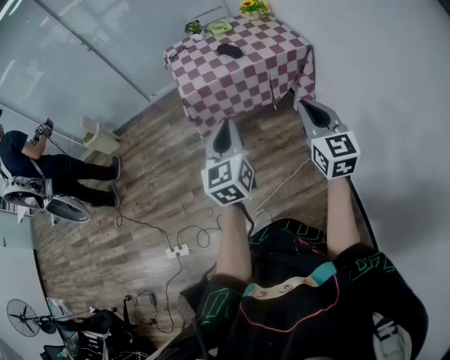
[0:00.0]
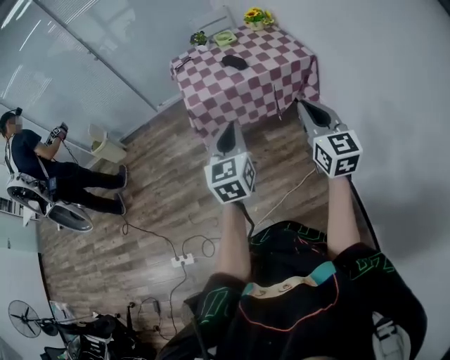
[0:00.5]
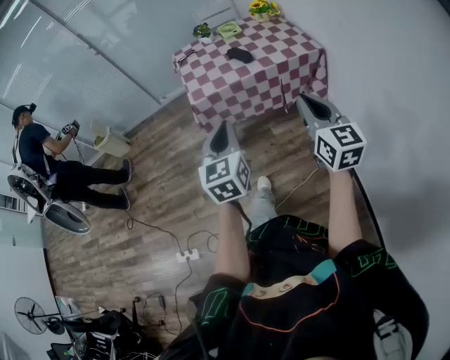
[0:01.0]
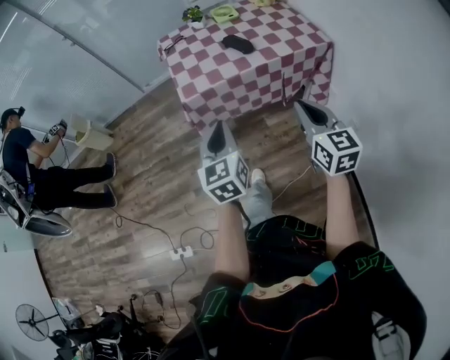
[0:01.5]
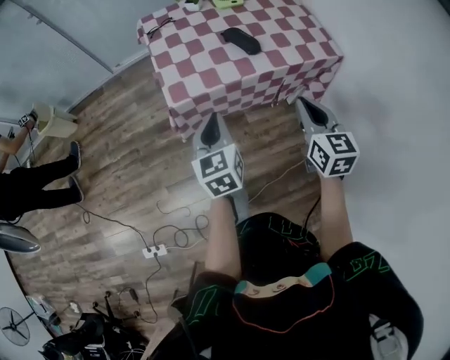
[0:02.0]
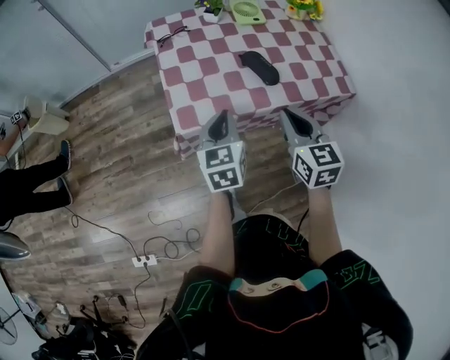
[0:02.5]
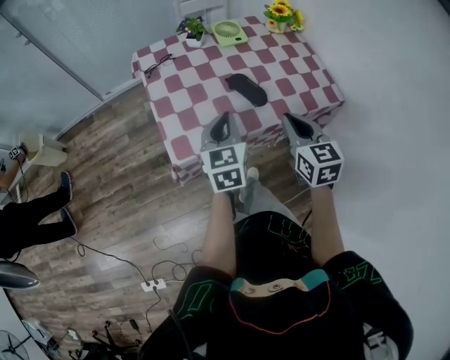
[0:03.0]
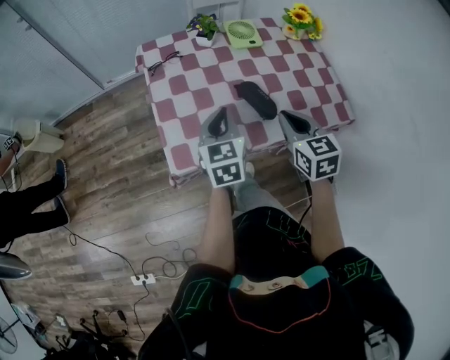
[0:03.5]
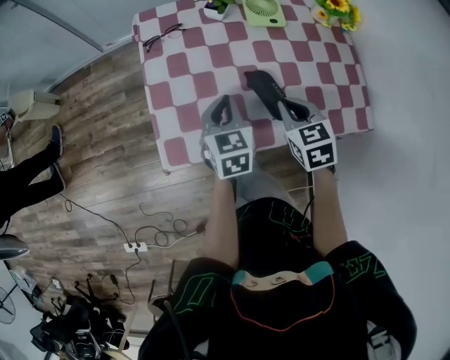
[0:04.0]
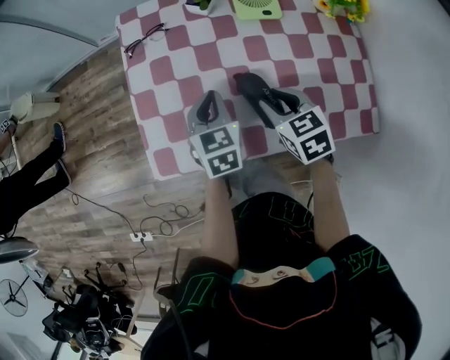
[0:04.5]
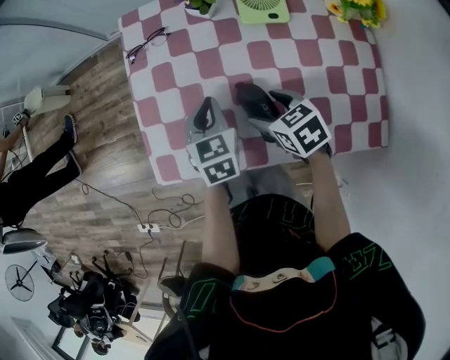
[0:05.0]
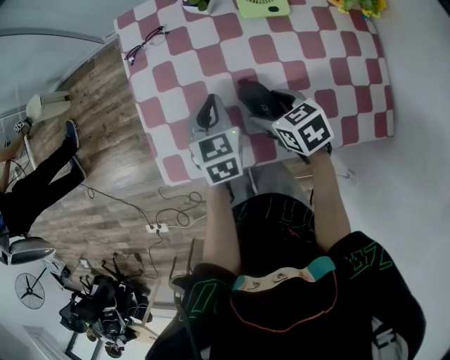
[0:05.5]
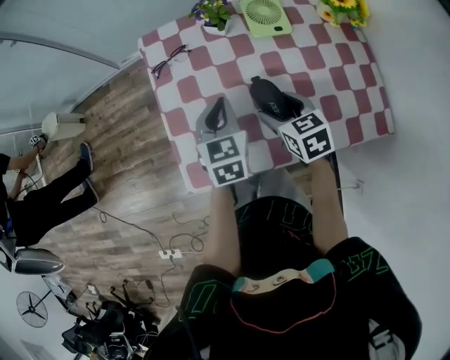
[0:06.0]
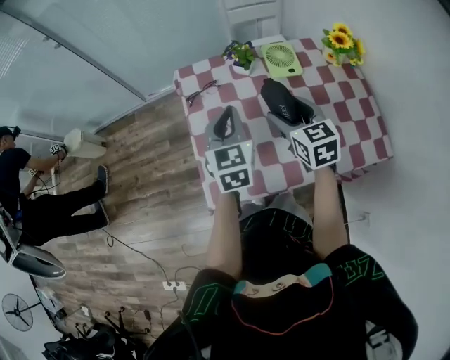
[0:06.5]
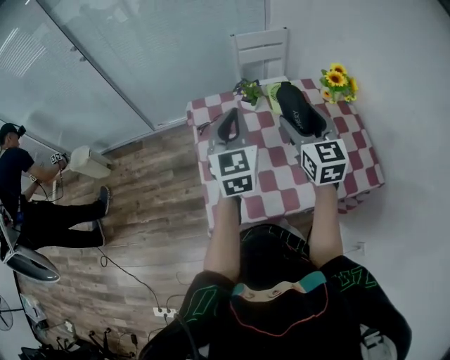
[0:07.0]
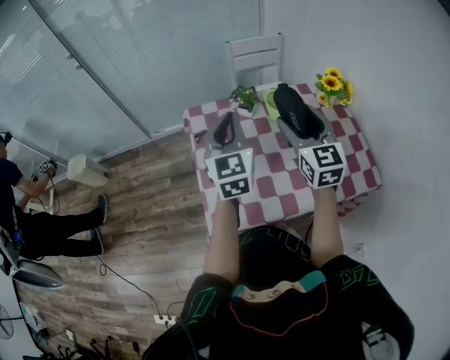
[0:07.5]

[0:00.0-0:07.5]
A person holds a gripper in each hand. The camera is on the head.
0:00.0 to 0:02.0: The left gripper moves forward and downward, roughly 35 cm. The right gripper moves forward, about 30 cm.
0:02.0 to 0:04.0: The grippers both shift forward by roughly 30 cm. The right gripper changes its angle by some 30 degrees.
0:04.0 to 0:05.5: The left gripper shifts by roughly 5 cm, while the right gripper heads downward, covering about 10 cm, swivels about 30 degrees, and opens up.
0:05.5 to 0:07.5: Both grippers move upward, about 30 cm. The right gripper angles its fingers upward, by some 50 degrees, while the left gripper angles its fingers upward, by approximately 40 degrees.

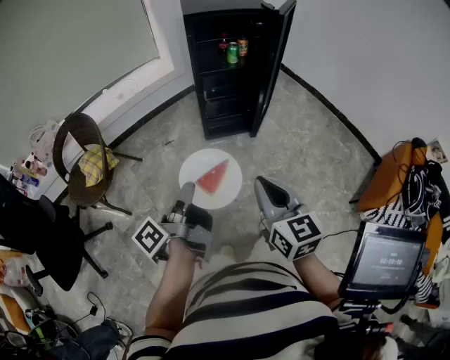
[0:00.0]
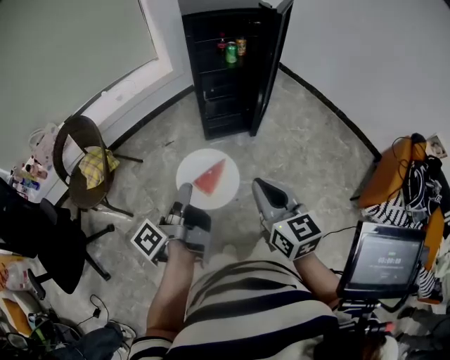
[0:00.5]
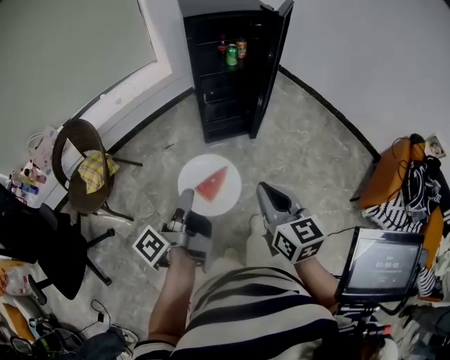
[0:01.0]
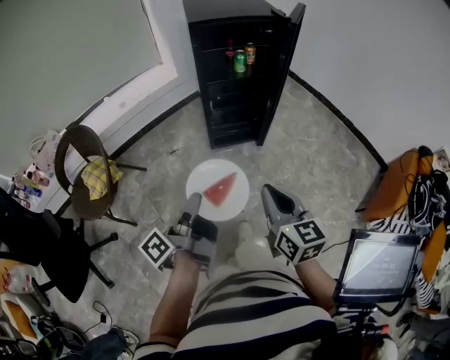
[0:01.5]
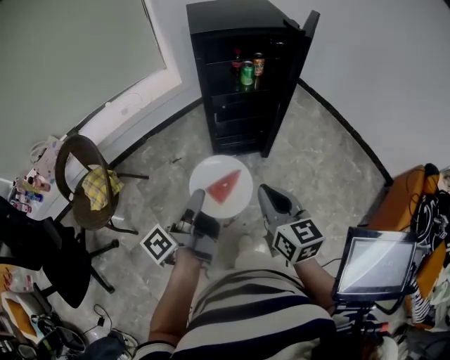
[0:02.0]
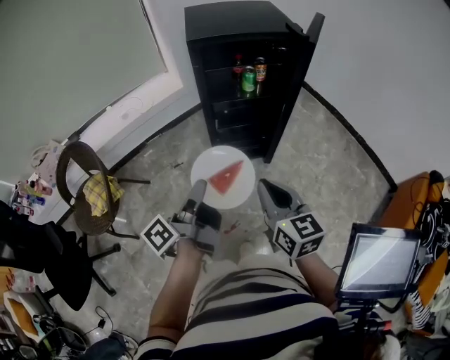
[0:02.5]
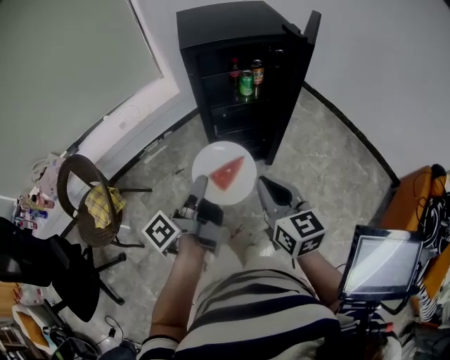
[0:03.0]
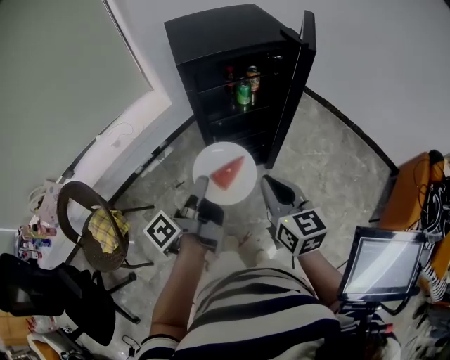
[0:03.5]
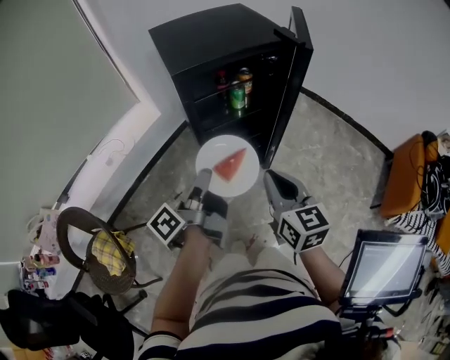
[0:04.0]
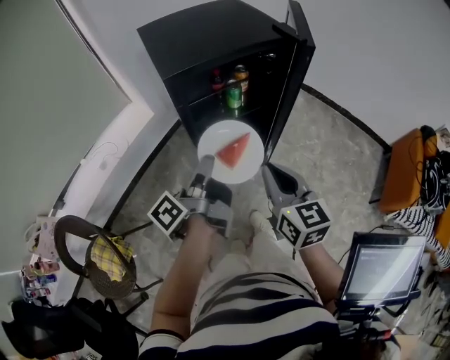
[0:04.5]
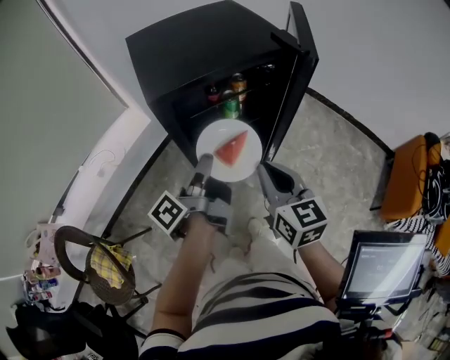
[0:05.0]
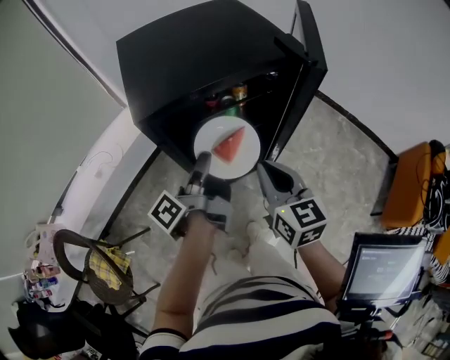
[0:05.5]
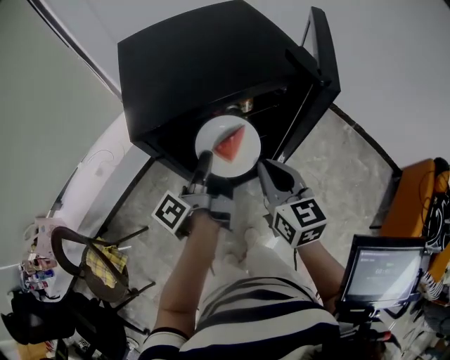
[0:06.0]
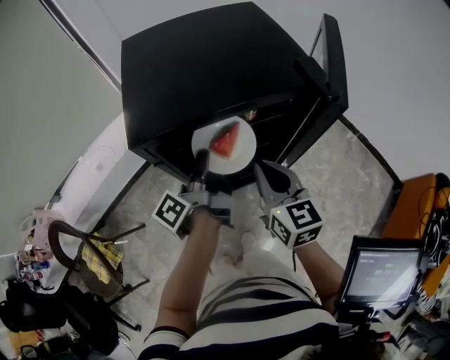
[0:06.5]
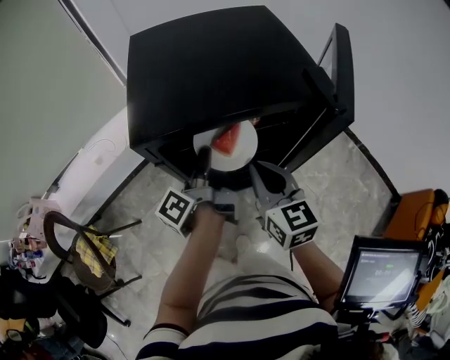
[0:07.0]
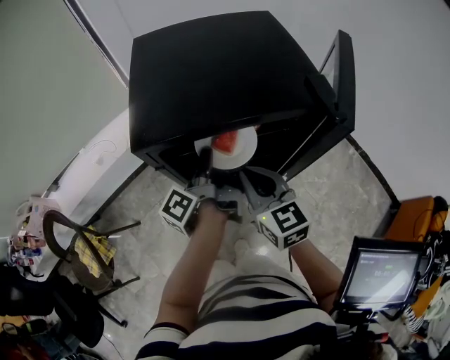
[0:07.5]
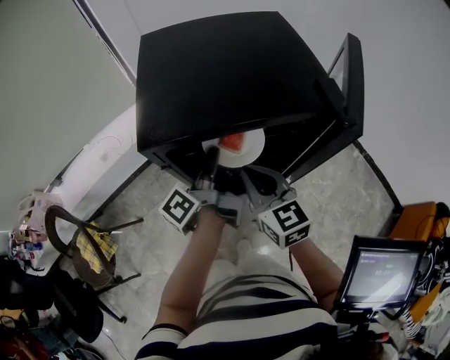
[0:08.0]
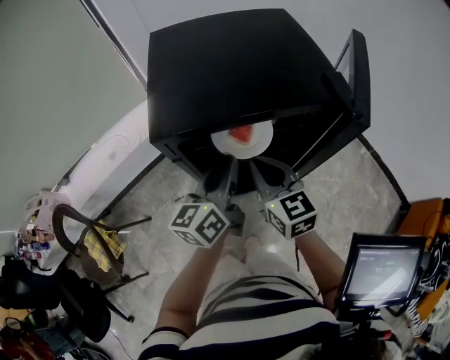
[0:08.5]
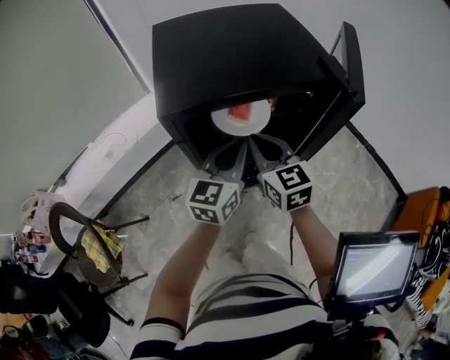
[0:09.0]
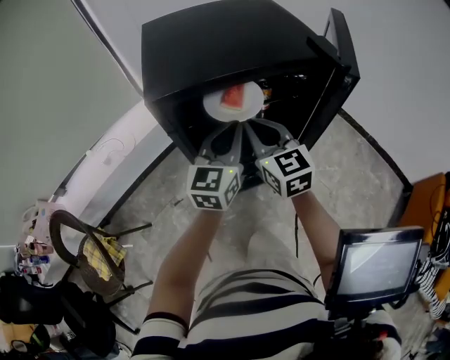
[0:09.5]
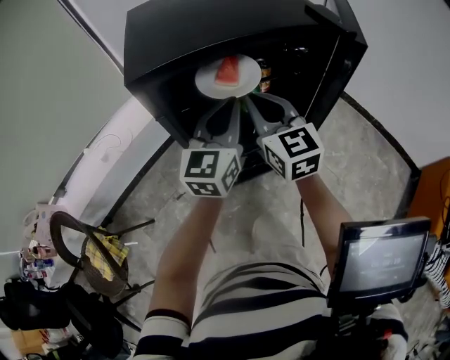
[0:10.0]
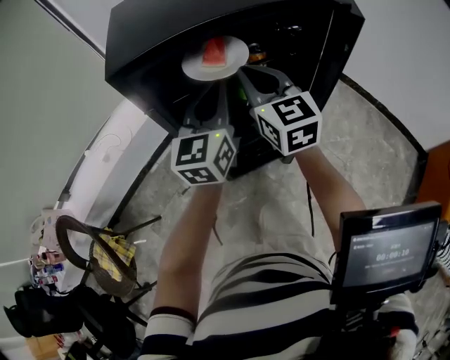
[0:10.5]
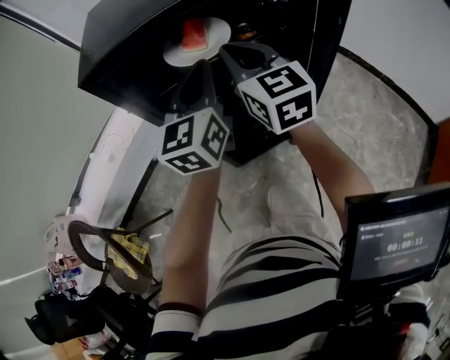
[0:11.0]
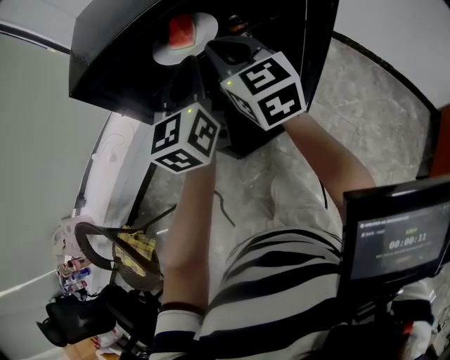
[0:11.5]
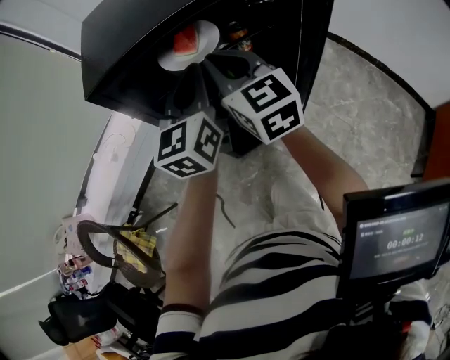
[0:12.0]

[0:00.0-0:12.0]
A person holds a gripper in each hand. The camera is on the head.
0:00.0 to 0:02.0: Both grippers move forward, approximately 15 cm.
0:02.0 to 0:04.0: The grippers both shift forward by about 20 cm.
0:04.0 to 0:06.0: The two grippers go approximately 20 cm forward.
0:06.0 to 0:08.0: The right gripper is displaced forward and to the left by some 5 cm, and rotates roughly 20 degrees.
0:08.0 to 0:10.0: The left gripper heads to the right, covering roughly 5 cm, and rotates around the line of its fingers by roughly 80 degrees, clockwise from behind.
0:10.0 to 0:12.0: The grippers make only small movements.

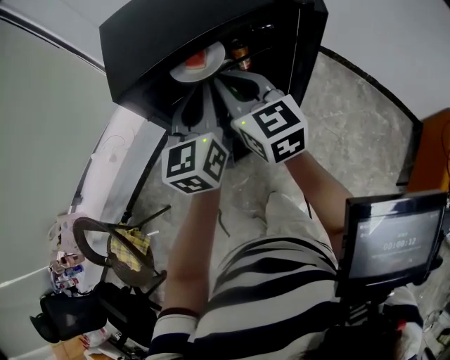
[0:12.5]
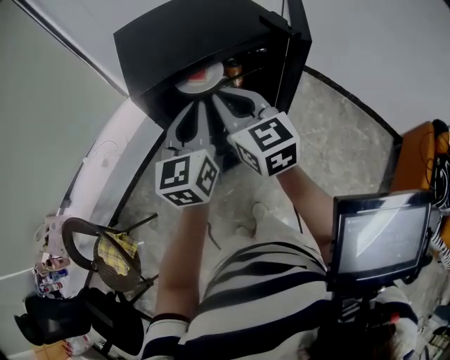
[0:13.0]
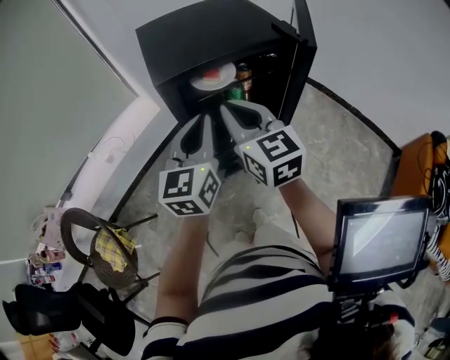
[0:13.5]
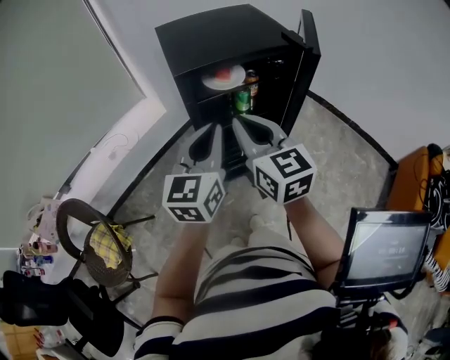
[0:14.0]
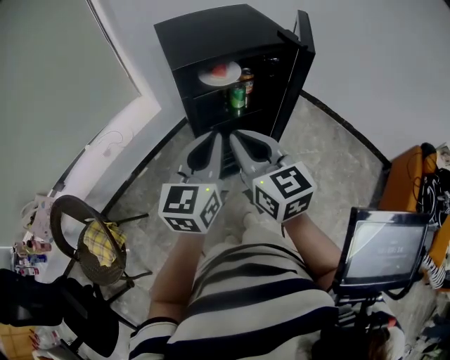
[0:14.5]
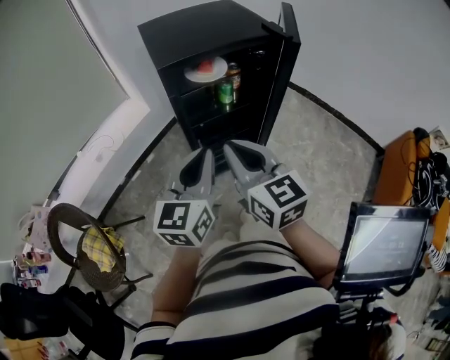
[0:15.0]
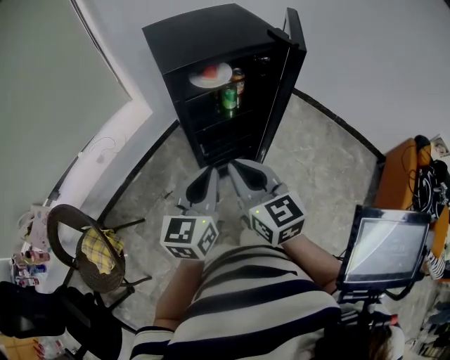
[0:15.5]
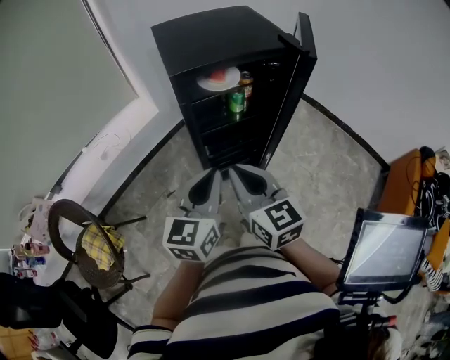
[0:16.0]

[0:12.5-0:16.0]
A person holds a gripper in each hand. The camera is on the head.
0:12.5 to 0:14.5: The two grippers go some 20 cm backward.
0:14.5 to 0:16.0: The two grippers go some 5 cm downward.

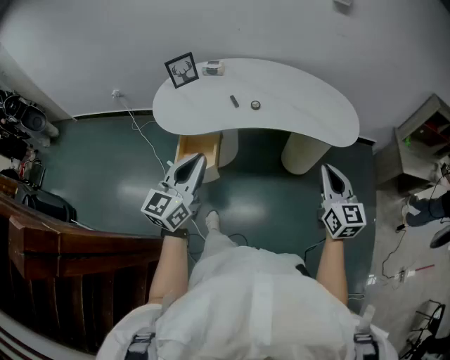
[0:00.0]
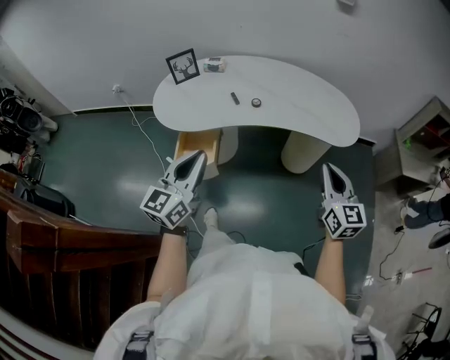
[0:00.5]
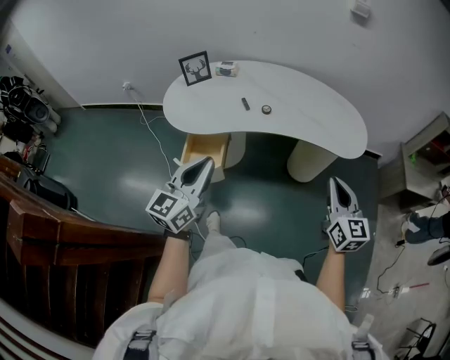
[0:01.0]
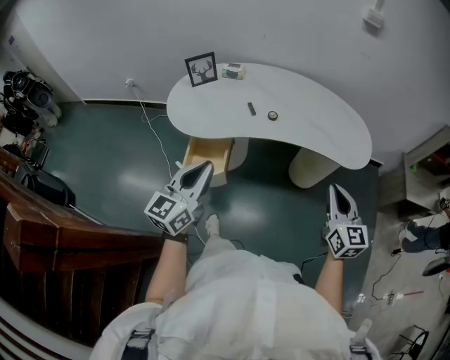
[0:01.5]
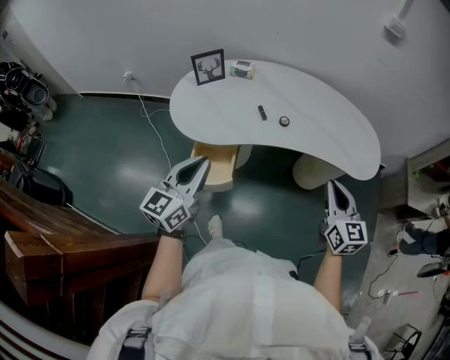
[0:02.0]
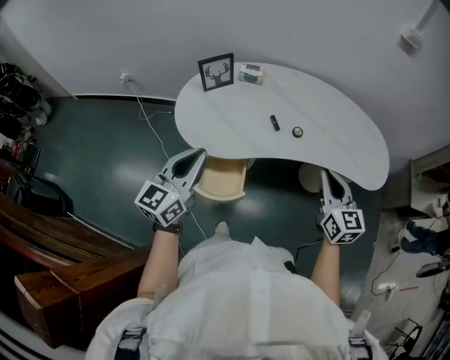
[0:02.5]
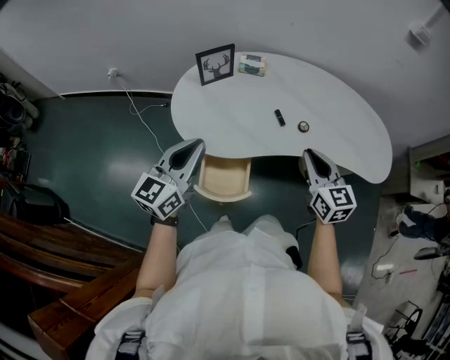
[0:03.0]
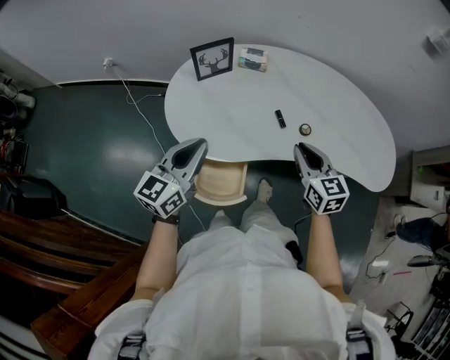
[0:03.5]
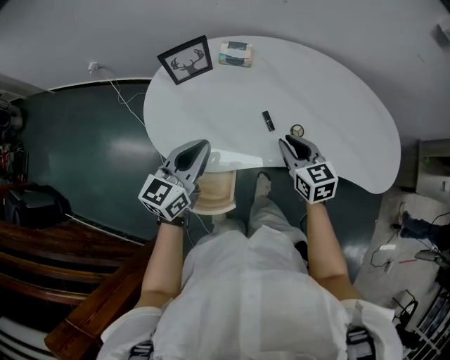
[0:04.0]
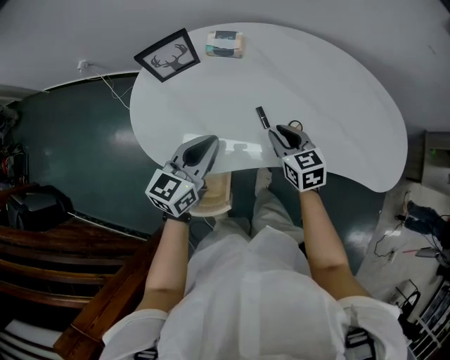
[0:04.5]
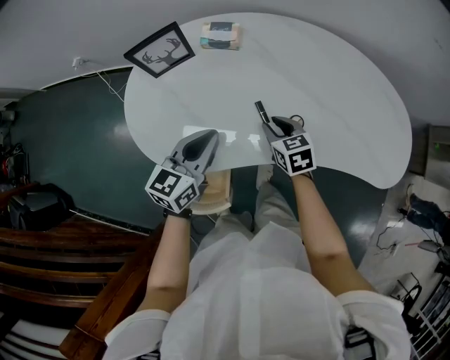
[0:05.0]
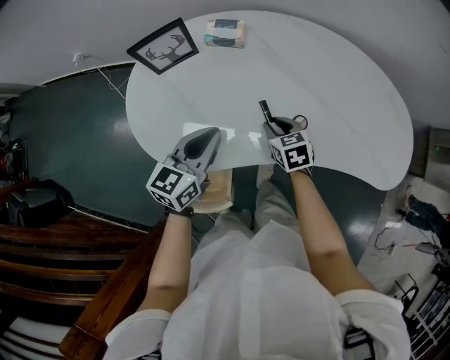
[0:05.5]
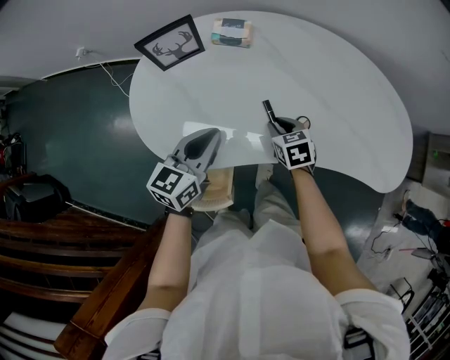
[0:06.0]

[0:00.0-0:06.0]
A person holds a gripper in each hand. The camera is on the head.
0:00.0 to 0:02.0: The right gripper is displaced forward and to the left by roughly 15 cm. Meanwhile the left gripper is displaced to the left and forward by some 15 cm.
0:02.0 to 0:04.0: The left gripper is displaced forward by about 25 cm, while the right gripper moves forward, to the left and downward, about 40 cm, and turns by approximately 30 degrees.
0:04.0 to 0:06.0: The left gripper travels downward by roughly 5 cm. The right gripper goes roughly 15 cm downward and forward, and rotates approximately 20 degrees.
